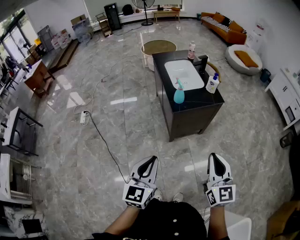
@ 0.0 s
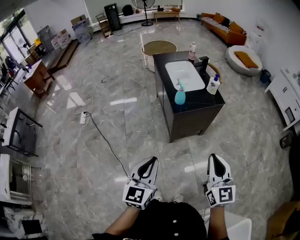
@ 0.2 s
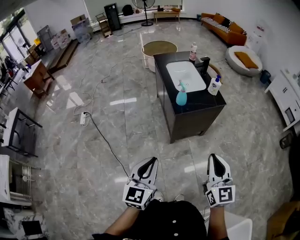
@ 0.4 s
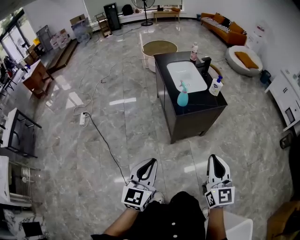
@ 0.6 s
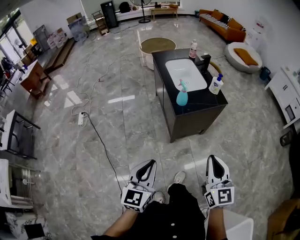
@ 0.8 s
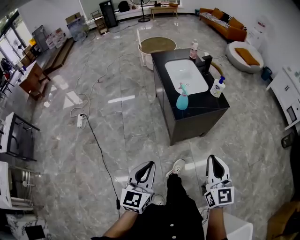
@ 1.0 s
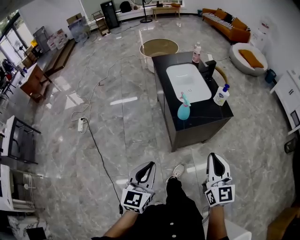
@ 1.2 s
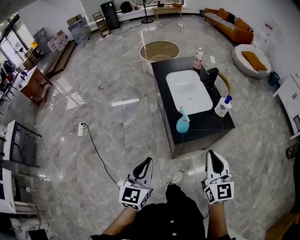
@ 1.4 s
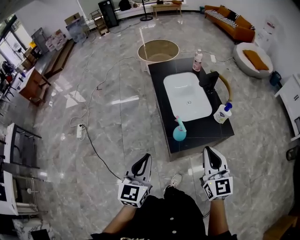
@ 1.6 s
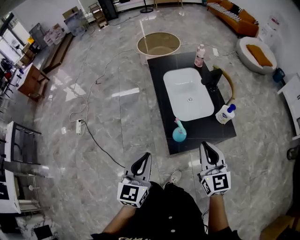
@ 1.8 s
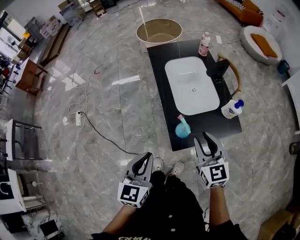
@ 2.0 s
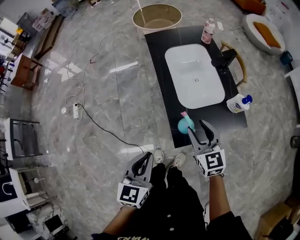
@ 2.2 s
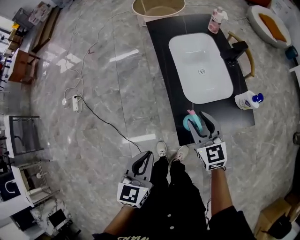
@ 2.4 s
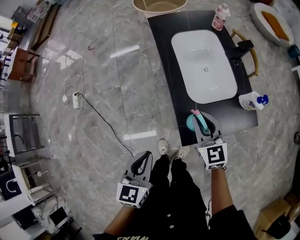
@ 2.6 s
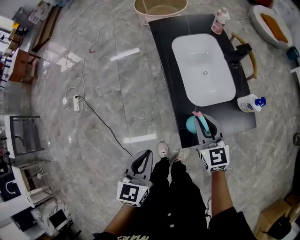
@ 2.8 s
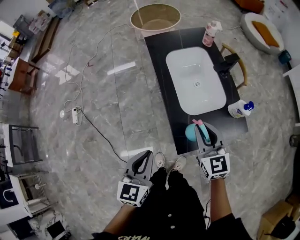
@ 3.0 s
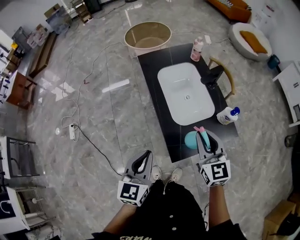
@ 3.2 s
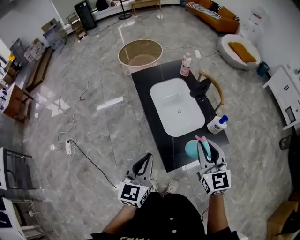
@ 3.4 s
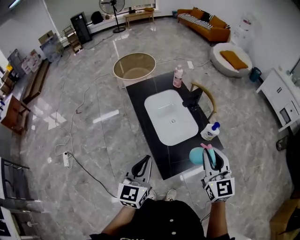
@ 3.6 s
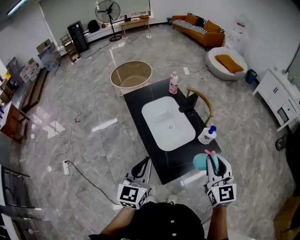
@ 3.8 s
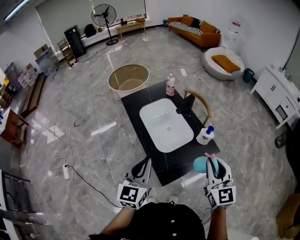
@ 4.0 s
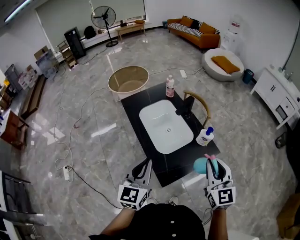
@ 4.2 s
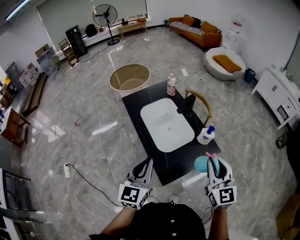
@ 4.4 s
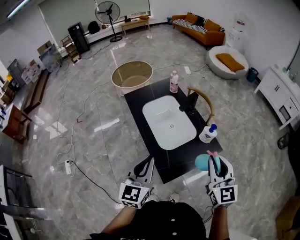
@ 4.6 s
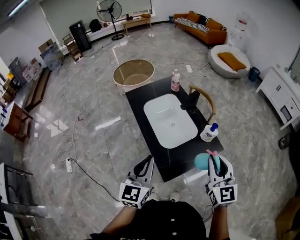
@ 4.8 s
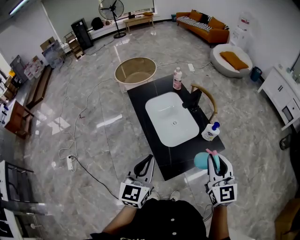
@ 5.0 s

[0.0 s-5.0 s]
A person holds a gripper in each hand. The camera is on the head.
0.0 to 1.6 s: The two grippers go some 35 cm forward.
1.6 to 3.4 s: Both grippers travel together forward, some 15 cm. The right gripper opens, then closes again.
3.4 to 5.0 s: The right gripper shifts about 10 cm to the right; the left gripper moves some 5 cm.

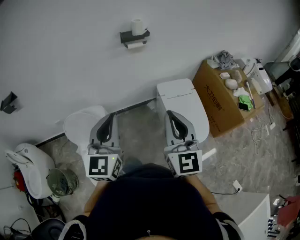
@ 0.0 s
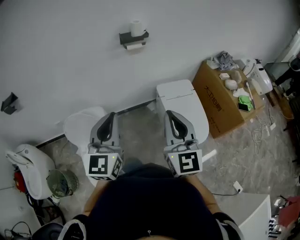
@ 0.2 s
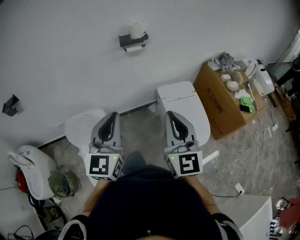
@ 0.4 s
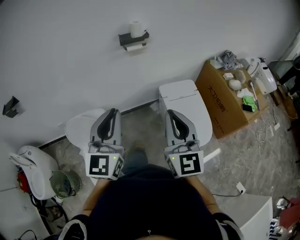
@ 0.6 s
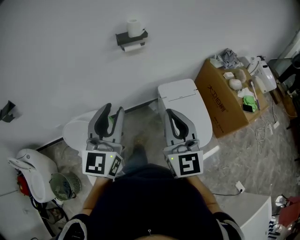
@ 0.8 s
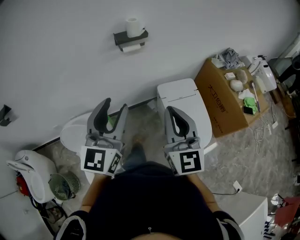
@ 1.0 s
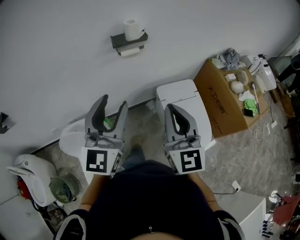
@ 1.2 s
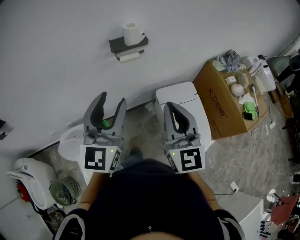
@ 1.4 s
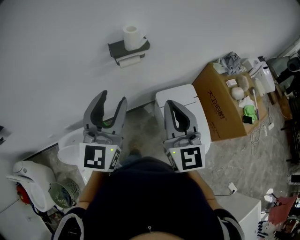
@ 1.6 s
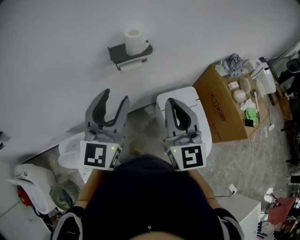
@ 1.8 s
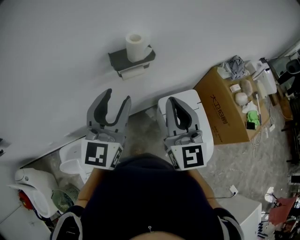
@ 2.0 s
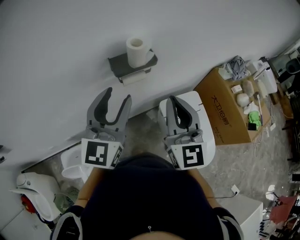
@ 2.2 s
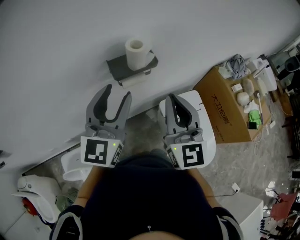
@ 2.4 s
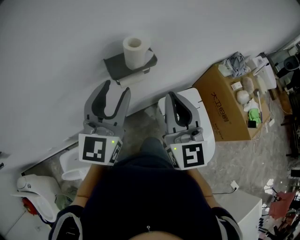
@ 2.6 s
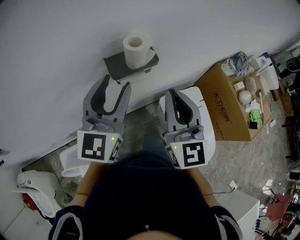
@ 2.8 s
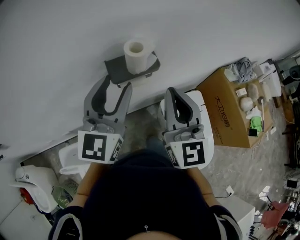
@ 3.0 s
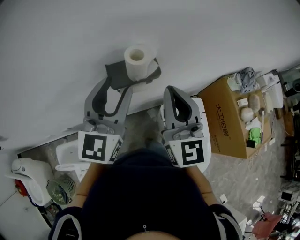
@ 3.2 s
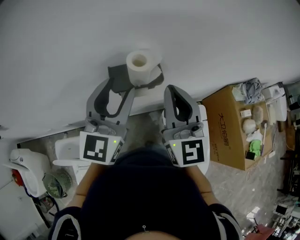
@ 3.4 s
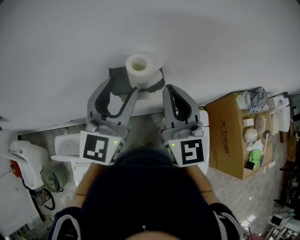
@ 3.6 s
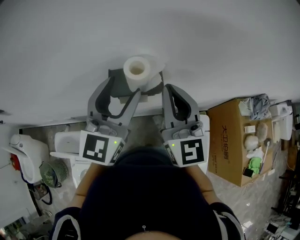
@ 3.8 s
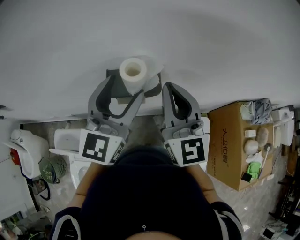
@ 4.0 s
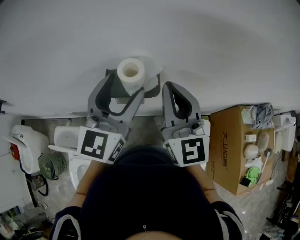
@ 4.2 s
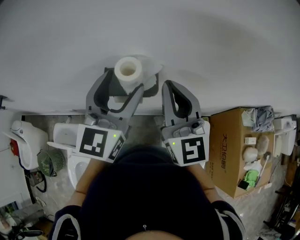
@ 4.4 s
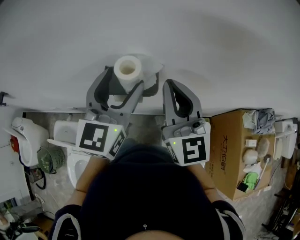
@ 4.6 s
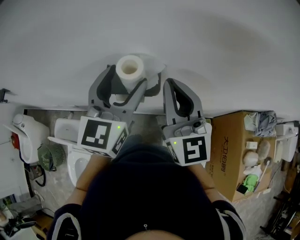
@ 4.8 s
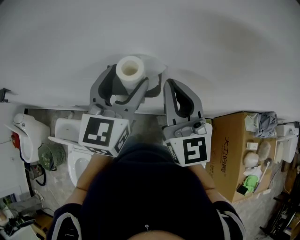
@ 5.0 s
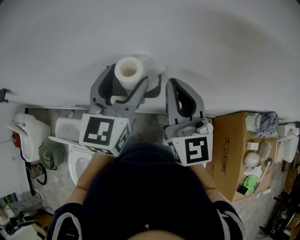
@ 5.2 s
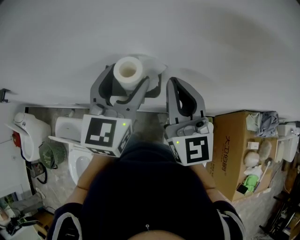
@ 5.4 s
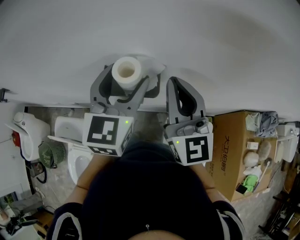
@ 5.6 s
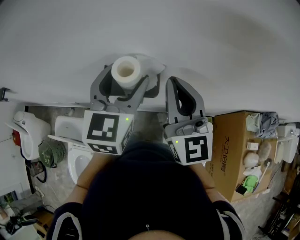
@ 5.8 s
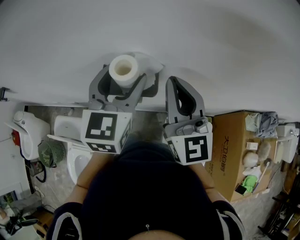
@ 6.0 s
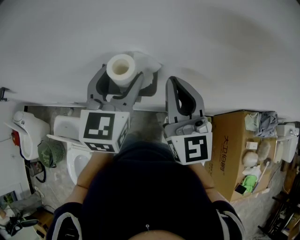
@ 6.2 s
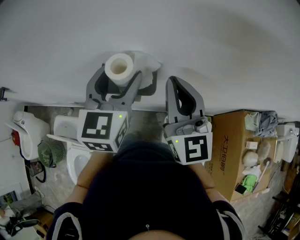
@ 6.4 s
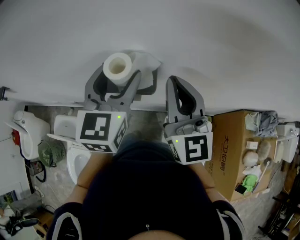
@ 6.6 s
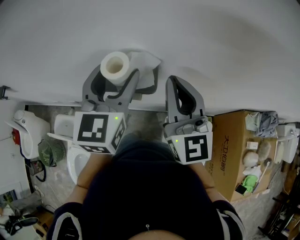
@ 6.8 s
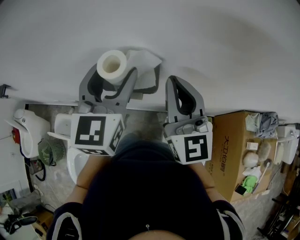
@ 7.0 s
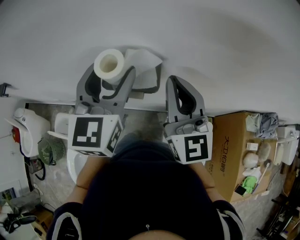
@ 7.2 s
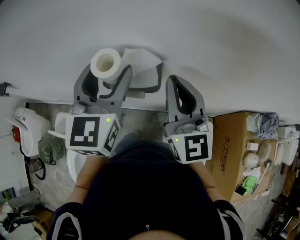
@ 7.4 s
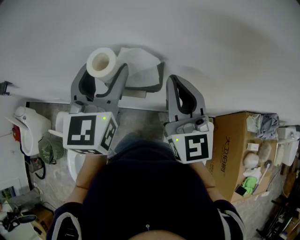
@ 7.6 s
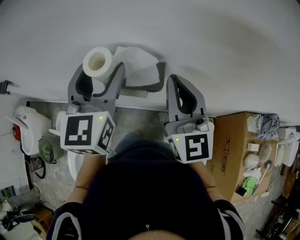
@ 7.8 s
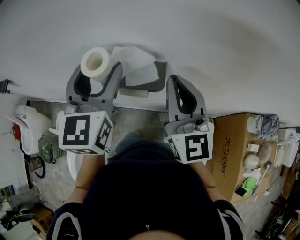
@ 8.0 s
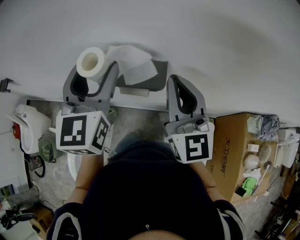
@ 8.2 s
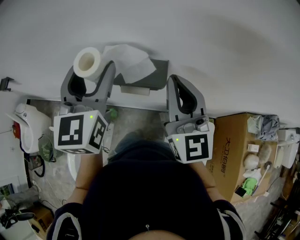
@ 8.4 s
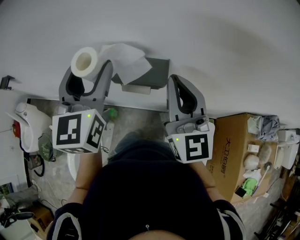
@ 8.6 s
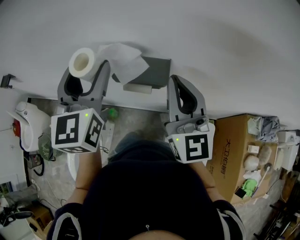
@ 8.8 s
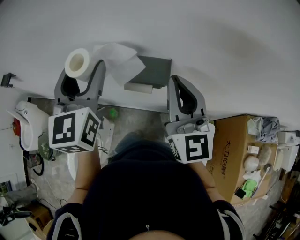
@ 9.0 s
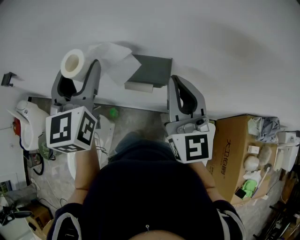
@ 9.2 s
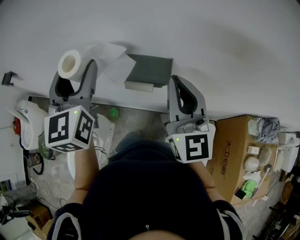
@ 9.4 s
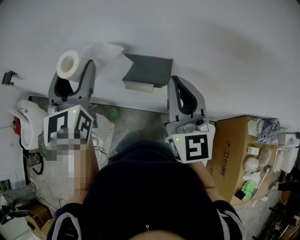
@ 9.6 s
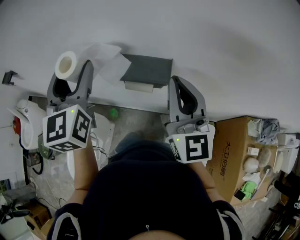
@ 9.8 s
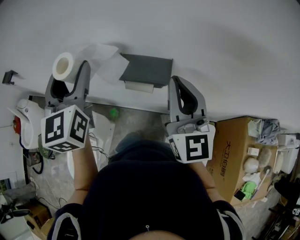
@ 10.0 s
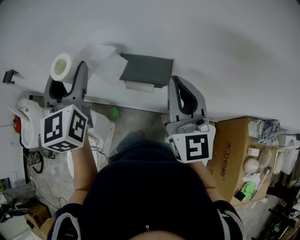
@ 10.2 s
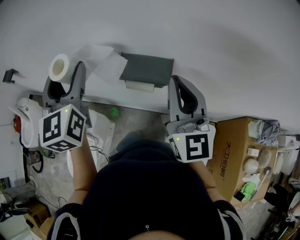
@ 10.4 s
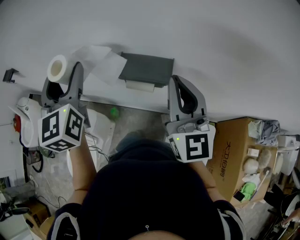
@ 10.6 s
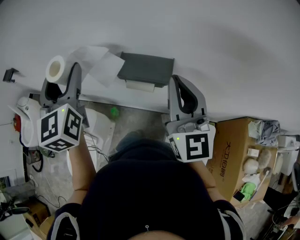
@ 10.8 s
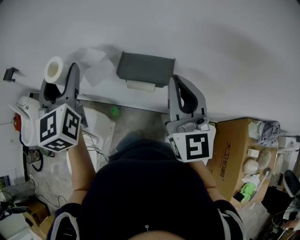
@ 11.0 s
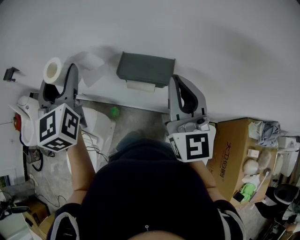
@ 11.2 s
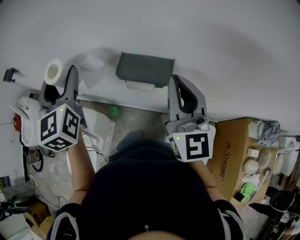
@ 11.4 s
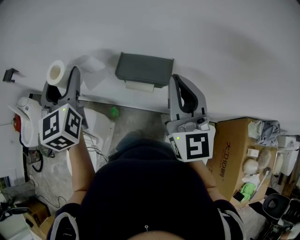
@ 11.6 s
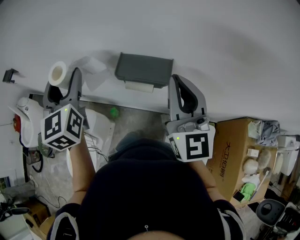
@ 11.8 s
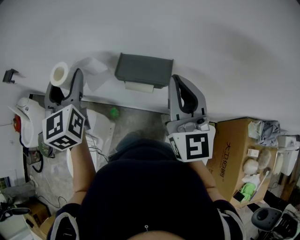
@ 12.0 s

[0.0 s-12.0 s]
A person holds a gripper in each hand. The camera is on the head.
0.0 to 1.6 s: Both grippers move forward, approximately 30 cm. The left gripper opens its fingers.
1.6 to 3.0 s: Both grippers move forward, approximately 20 cm.
3.0 to 4.4 s: The right gripper moves forward, approximately 10 cm, and rotates approximately 30 degrees; the left gripper travels forward by roughly 5 cm, and opens its fingers.
4.4 to 6.0 s: The grippers make only small movements.
6.0 to 7.6 s: The left gripper shifts roughly 5 cm to the left.
7.6 to 9.0 s: The left gripper travels to the left by some 10 cm.
9.0 to 10.4 s: The left gripper moves to the left, approximately 5 cm.
10.4 to 12.0 s: There are only small adjustments of the grippers.

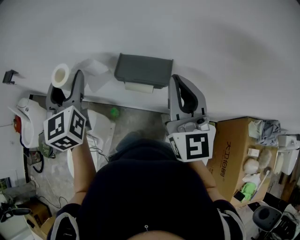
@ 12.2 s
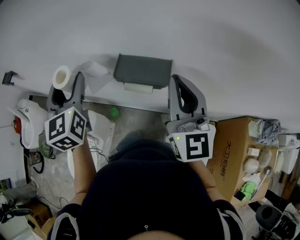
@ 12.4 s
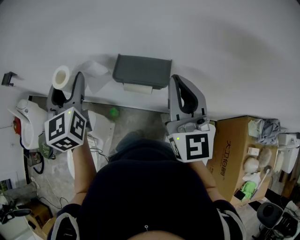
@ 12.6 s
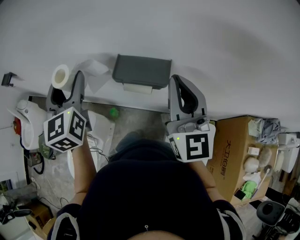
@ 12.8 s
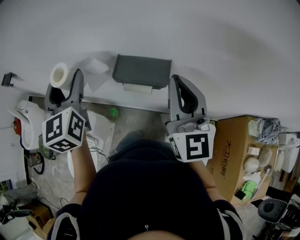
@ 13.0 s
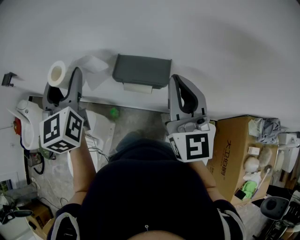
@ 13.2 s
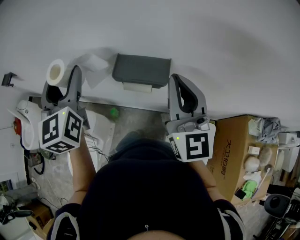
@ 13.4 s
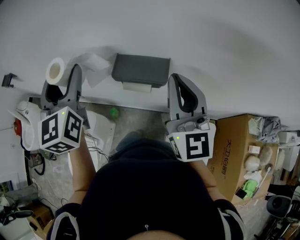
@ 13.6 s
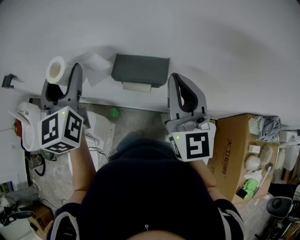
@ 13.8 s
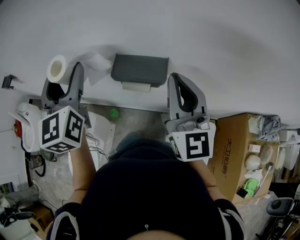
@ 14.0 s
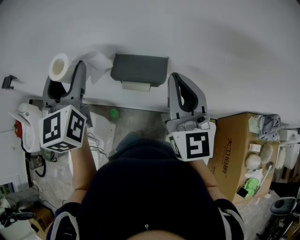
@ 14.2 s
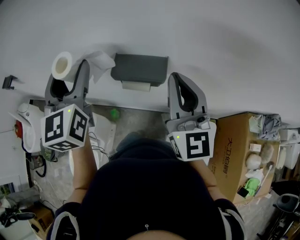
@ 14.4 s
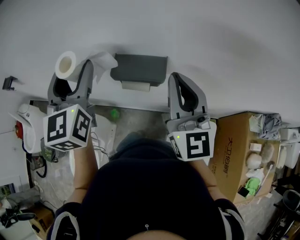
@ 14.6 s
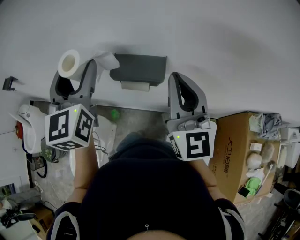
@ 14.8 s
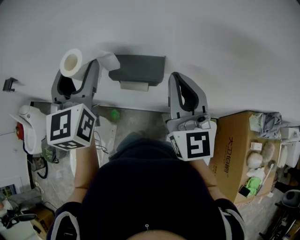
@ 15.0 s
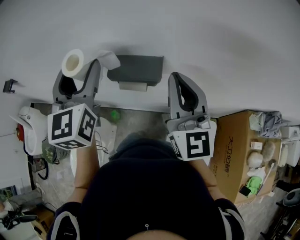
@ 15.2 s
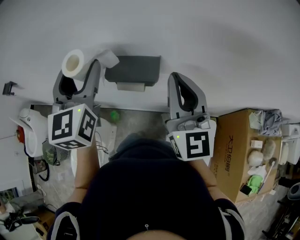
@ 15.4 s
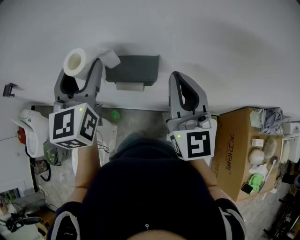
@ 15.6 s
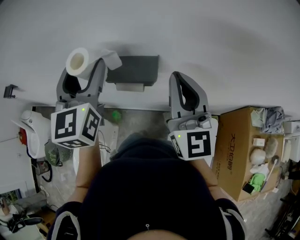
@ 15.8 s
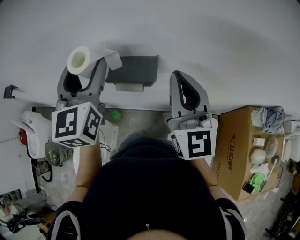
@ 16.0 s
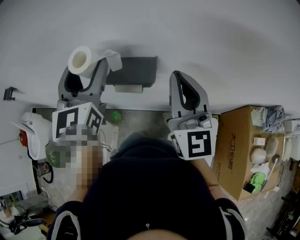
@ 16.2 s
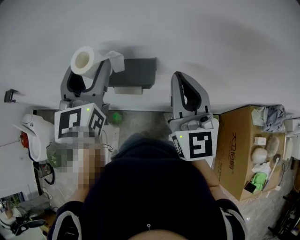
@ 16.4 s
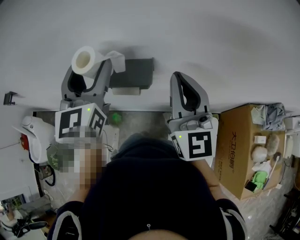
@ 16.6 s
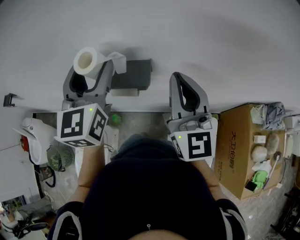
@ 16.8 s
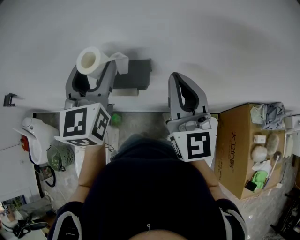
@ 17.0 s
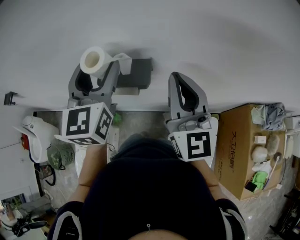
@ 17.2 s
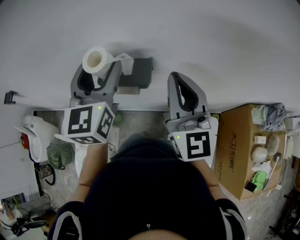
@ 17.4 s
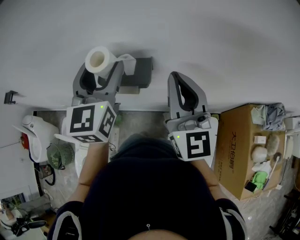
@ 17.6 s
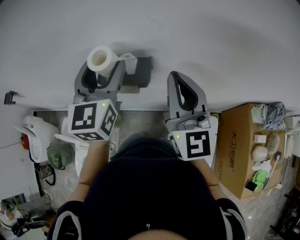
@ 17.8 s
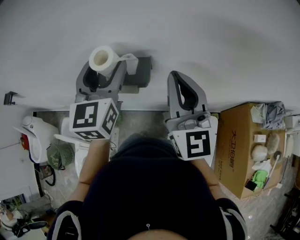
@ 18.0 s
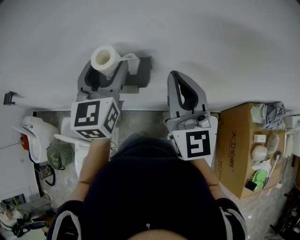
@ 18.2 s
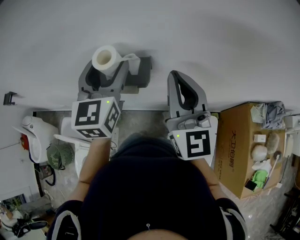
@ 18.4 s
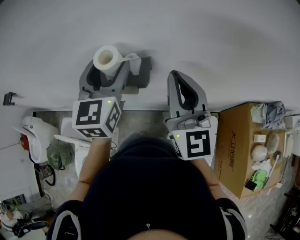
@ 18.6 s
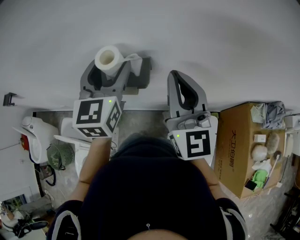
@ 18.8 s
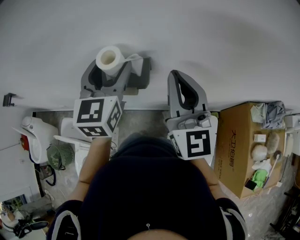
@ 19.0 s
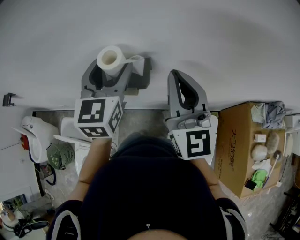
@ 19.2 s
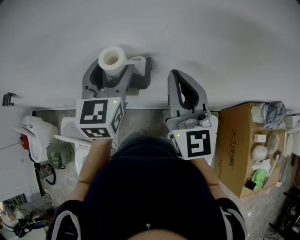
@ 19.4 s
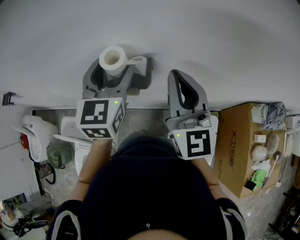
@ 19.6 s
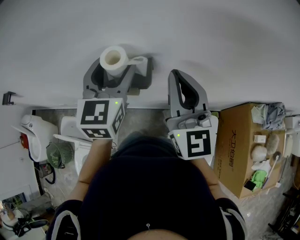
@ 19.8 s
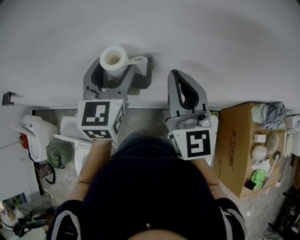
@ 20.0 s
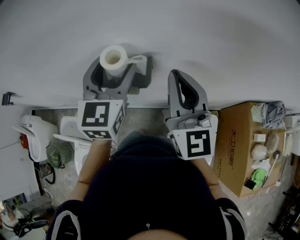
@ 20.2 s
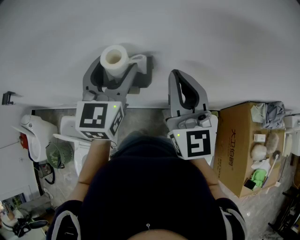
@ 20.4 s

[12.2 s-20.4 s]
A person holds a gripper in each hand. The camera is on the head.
12.2 to 13.8 s: The grippers stay close to where they were, moving slightly.
13.8 to 15.4 s: The left gripper travels to the right by some 10 cm.
15.4 to 17.2 s: The left gripper is displaced to the right by roughly 10 cm.
17.2 to 20.4 s: There are only small adjustments of the grippers.
